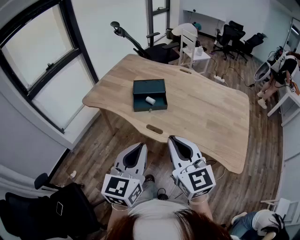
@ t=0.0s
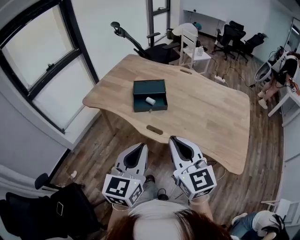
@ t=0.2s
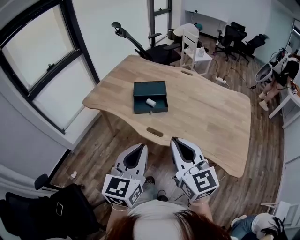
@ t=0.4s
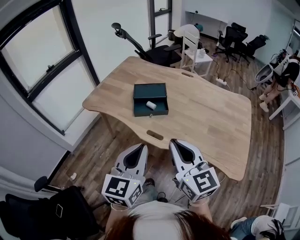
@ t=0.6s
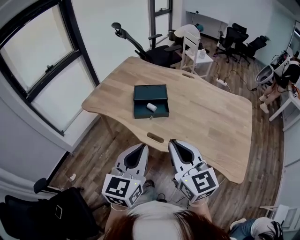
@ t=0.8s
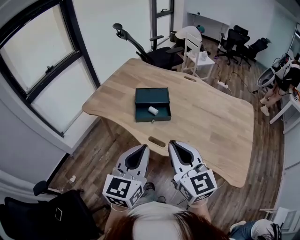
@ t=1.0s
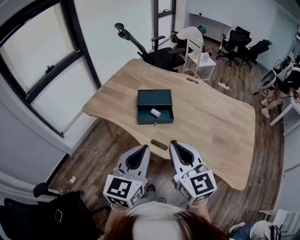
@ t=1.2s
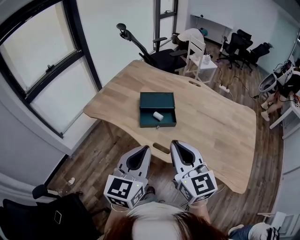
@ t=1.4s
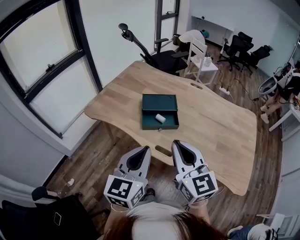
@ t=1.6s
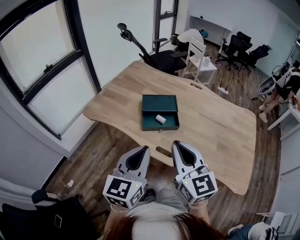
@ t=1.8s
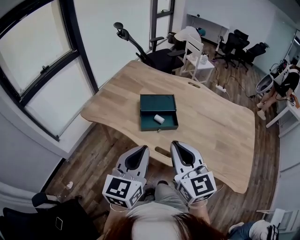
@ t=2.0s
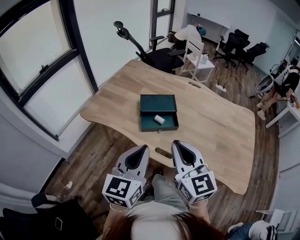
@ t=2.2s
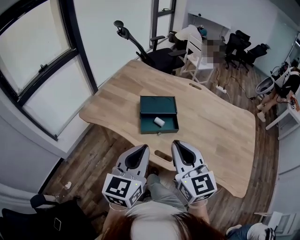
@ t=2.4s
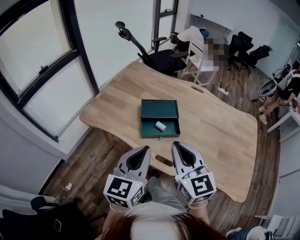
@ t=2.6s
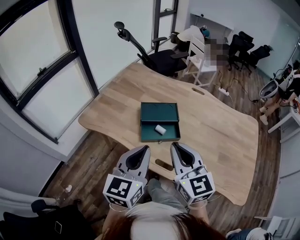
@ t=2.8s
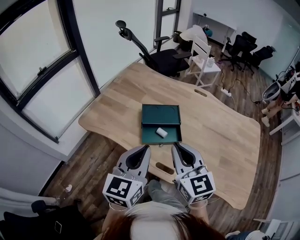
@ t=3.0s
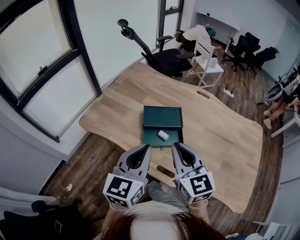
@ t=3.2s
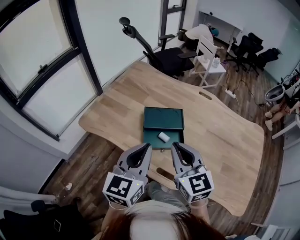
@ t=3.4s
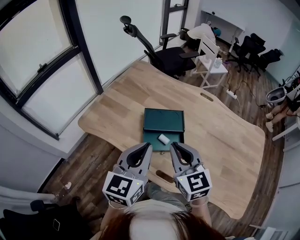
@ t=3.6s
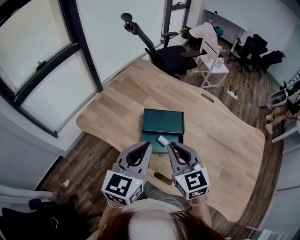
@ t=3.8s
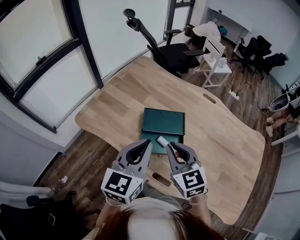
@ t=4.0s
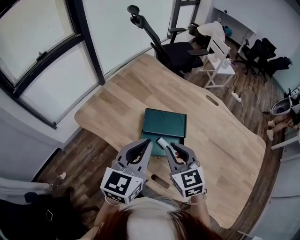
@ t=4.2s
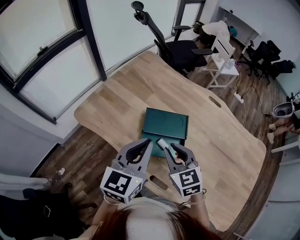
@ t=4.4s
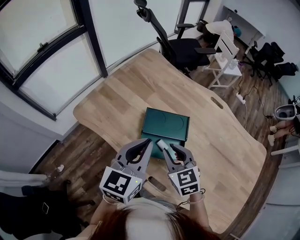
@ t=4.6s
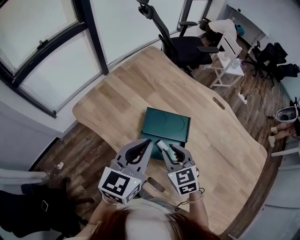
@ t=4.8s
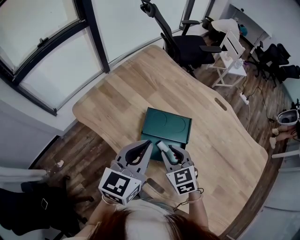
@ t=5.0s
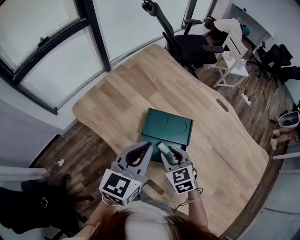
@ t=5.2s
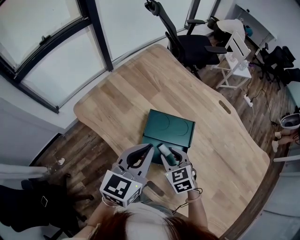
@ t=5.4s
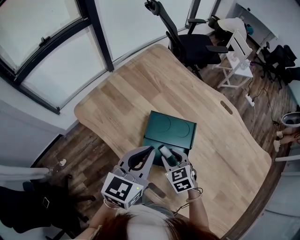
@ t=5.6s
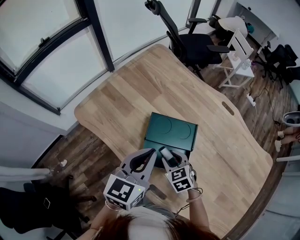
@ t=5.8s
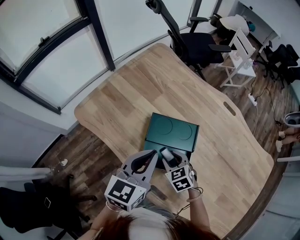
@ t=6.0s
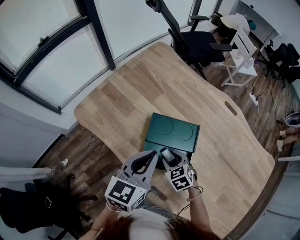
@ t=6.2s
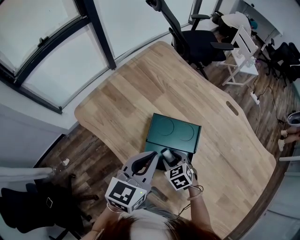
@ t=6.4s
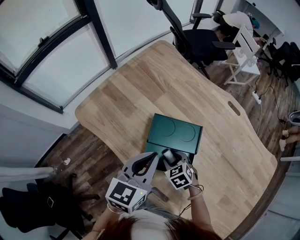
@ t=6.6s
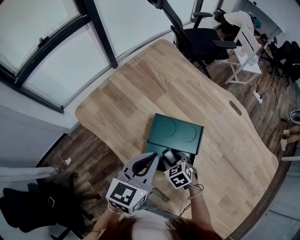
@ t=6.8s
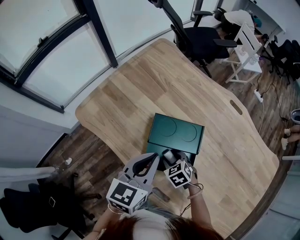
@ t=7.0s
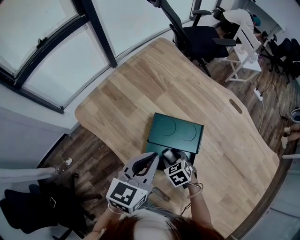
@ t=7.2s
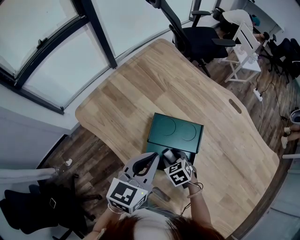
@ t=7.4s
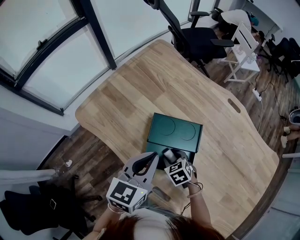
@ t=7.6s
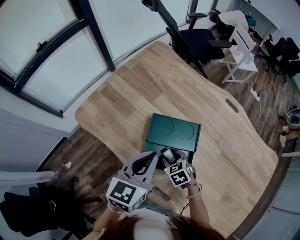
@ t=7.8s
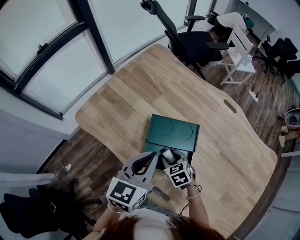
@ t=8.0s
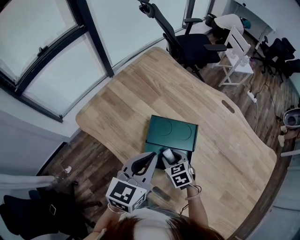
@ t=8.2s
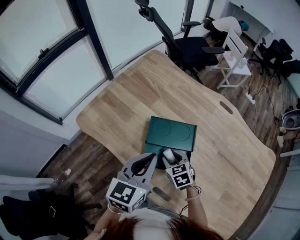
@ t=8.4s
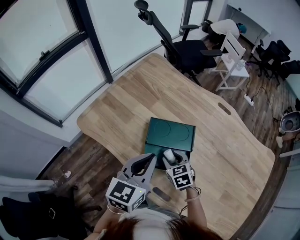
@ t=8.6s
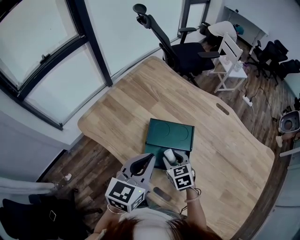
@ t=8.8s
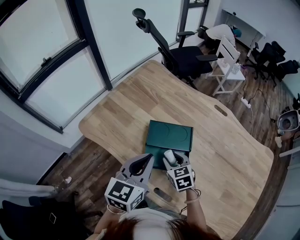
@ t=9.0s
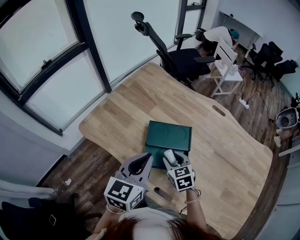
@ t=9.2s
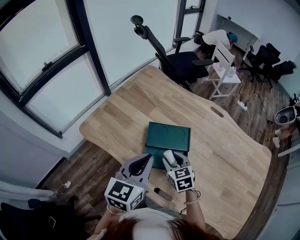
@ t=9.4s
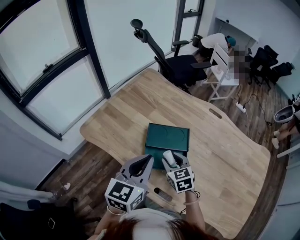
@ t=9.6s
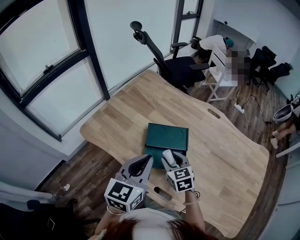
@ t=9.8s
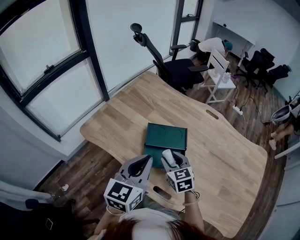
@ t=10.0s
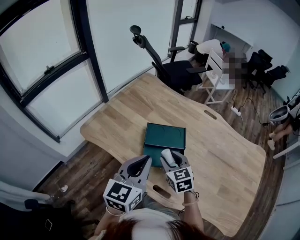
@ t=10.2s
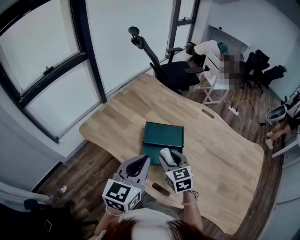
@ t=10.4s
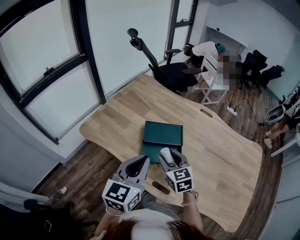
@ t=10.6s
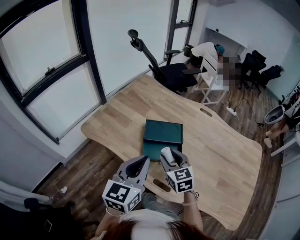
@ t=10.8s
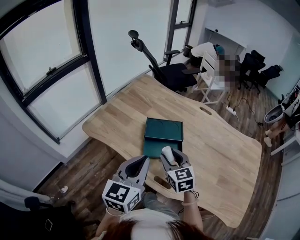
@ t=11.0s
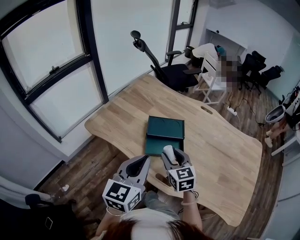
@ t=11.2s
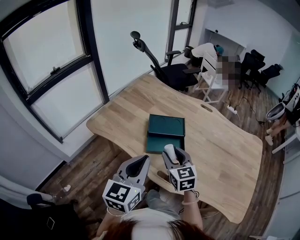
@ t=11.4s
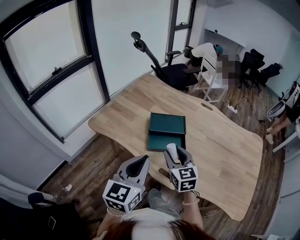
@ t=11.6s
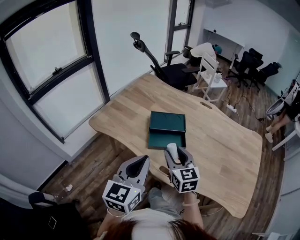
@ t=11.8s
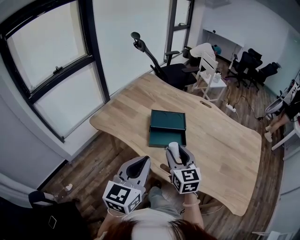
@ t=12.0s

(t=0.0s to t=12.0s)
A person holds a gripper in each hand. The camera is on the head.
t=0.0s - t=1.6s: Both grippers travel together forward and to the left, roughly 15 cm.
t=1.6s - t=3.0s: The grippers both shift forward by about 15 cm.
t=3.0s - t=4.4s: The left gripper moves forward, about 15 cm; the right gripper travels forward and downward by roughly 20 cm, and rotates approximately 20 degrees.
t=4.4s - t=6.0s: The left gripper is displaced downward and forward by roughly 10 cm. Meanwhile the right gripper shifts some 20 cm downward, swivels approximately 30 degrees, and opens its fingers.
t=6.0s - t=7.6s: The right gripper changes place by some 5 cm.
t=7.6s - t=9.0s: The right gripper travels upward by approximately 10 cm, and changes its angle by roughly 20 degrees. The left gripper heads upward, covering roughly 5 cm.
t=9.0s - t=10.4s: The right gripper travels upward and backward by roughly 10 cm, while the left gripper moves backward, some 10 cm.
t=10.4s - t=12.0s: The right gripper heads backward and upward, covering roughly 15 cm. The left gripper shifts approximately 15 cm backward.

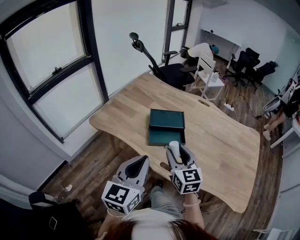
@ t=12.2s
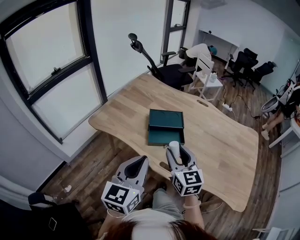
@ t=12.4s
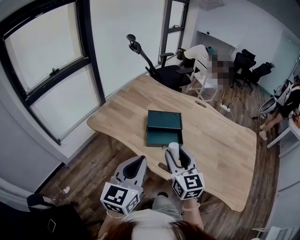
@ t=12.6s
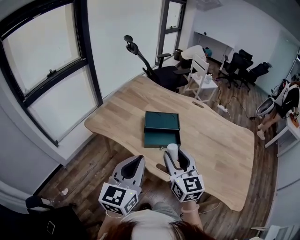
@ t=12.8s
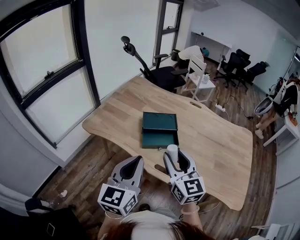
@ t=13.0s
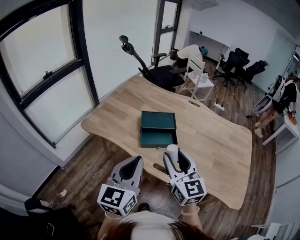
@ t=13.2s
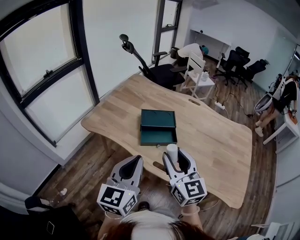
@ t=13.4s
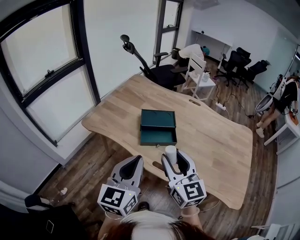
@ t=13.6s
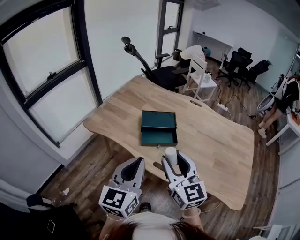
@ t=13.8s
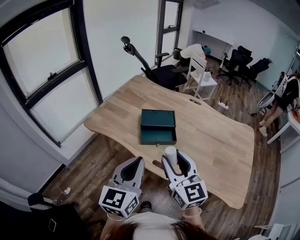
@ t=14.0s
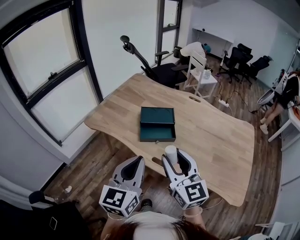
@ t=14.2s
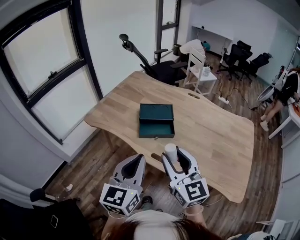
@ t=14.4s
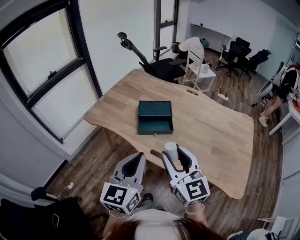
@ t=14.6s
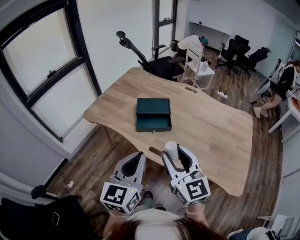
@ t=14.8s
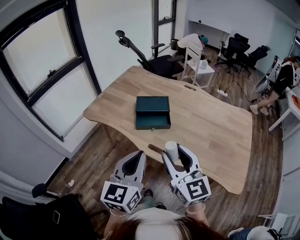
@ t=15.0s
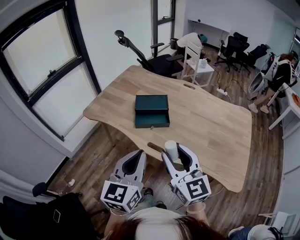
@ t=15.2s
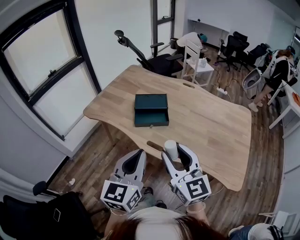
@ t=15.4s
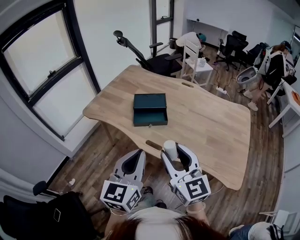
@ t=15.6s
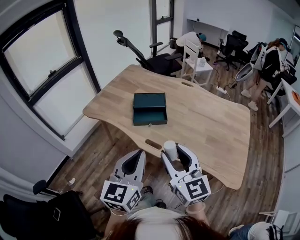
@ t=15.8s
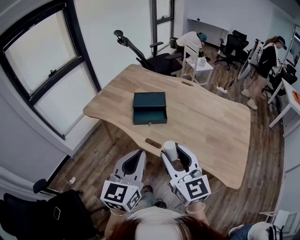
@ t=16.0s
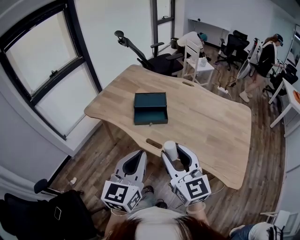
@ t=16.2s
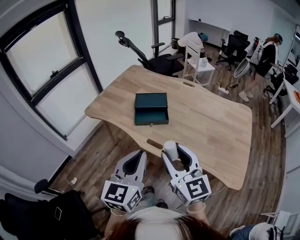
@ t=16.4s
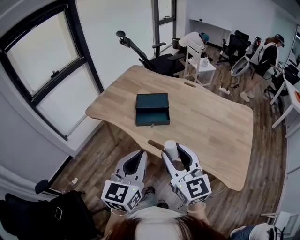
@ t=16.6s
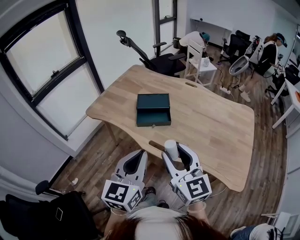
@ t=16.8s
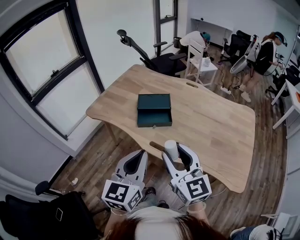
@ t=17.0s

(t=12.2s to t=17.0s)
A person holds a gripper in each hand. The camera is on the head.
t=12.2s - t=13.8s: The right gripper moves backward and upward, roughly 10 cm.
t=13.8s - t=15.4s: Both grippers travel together backward and to the right, about 10 cm.
t=15.4s - t=17.0s: The grippers make only small movements.

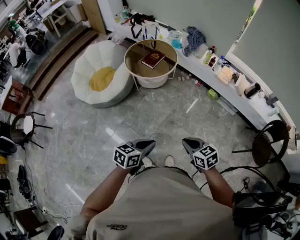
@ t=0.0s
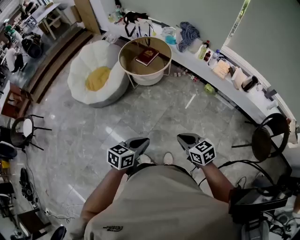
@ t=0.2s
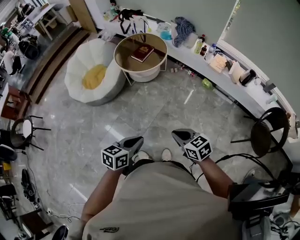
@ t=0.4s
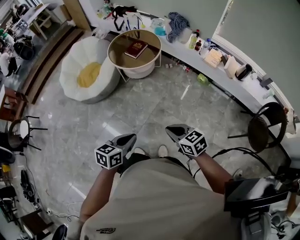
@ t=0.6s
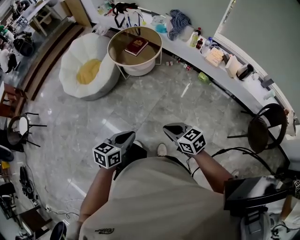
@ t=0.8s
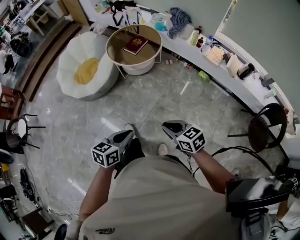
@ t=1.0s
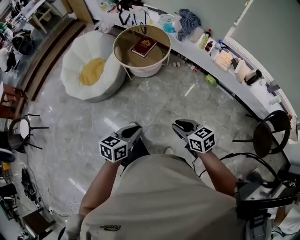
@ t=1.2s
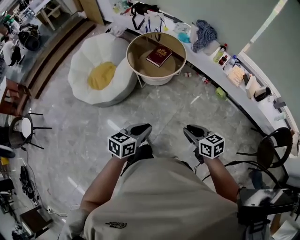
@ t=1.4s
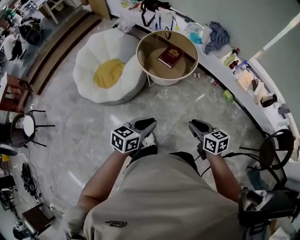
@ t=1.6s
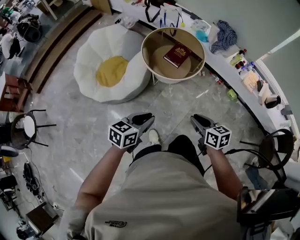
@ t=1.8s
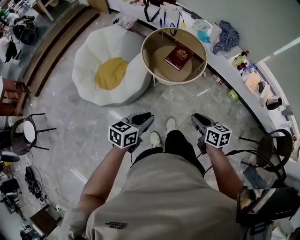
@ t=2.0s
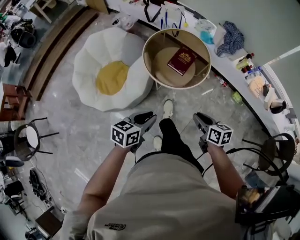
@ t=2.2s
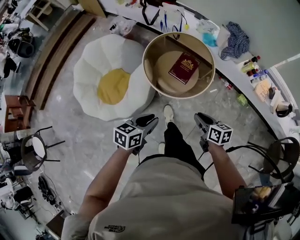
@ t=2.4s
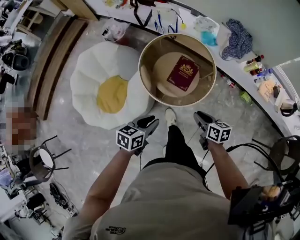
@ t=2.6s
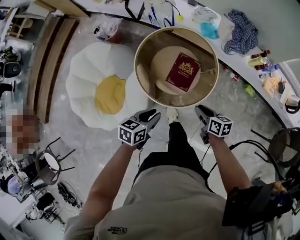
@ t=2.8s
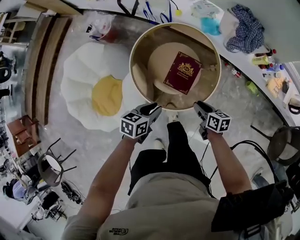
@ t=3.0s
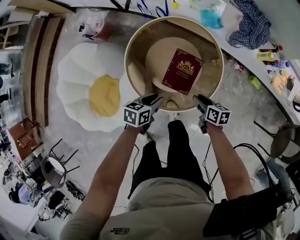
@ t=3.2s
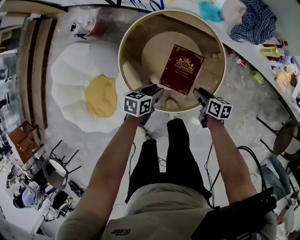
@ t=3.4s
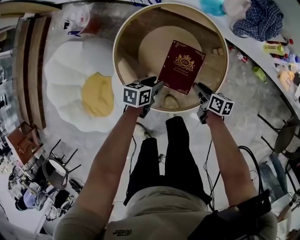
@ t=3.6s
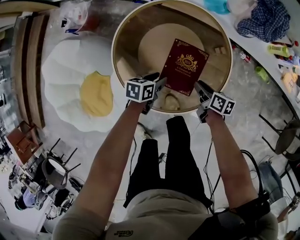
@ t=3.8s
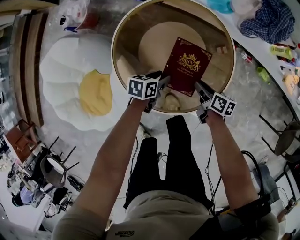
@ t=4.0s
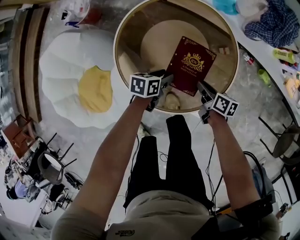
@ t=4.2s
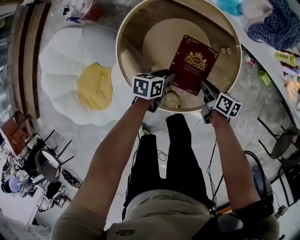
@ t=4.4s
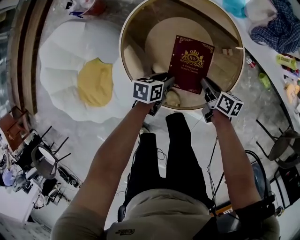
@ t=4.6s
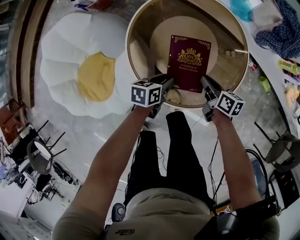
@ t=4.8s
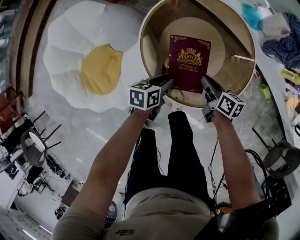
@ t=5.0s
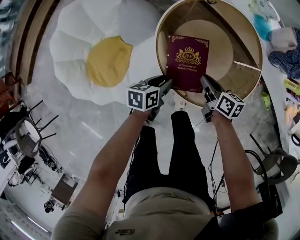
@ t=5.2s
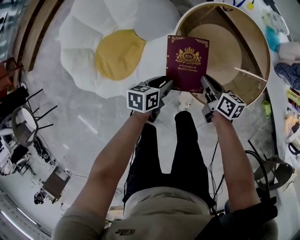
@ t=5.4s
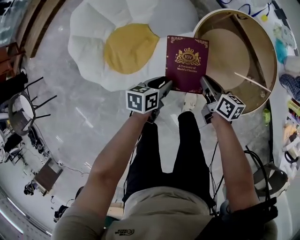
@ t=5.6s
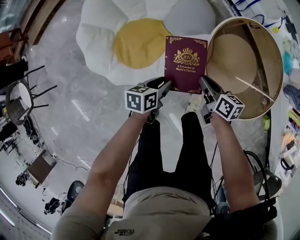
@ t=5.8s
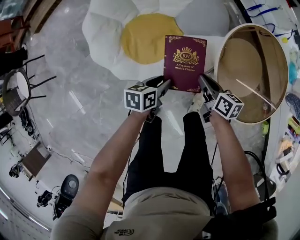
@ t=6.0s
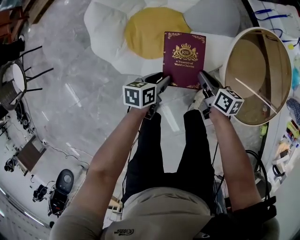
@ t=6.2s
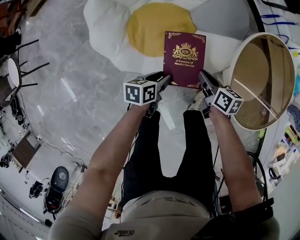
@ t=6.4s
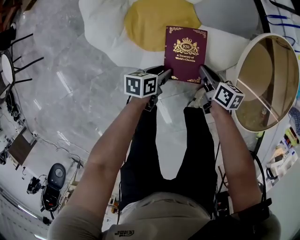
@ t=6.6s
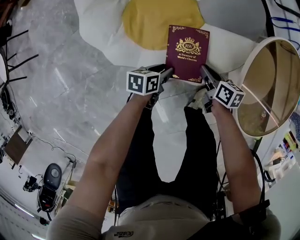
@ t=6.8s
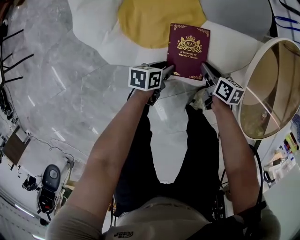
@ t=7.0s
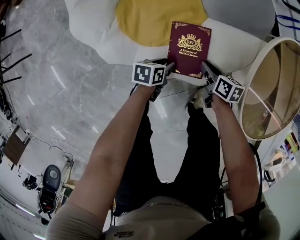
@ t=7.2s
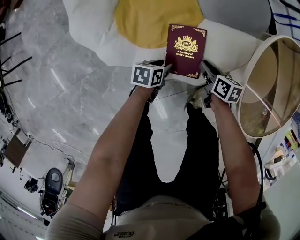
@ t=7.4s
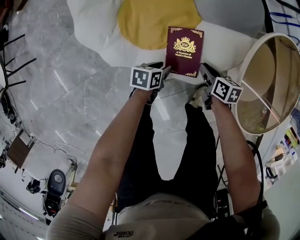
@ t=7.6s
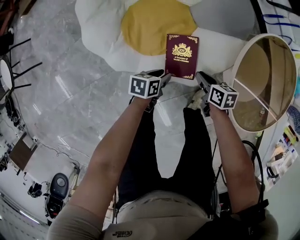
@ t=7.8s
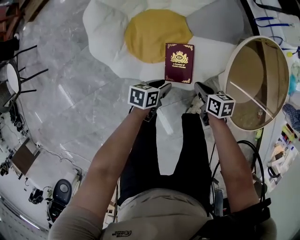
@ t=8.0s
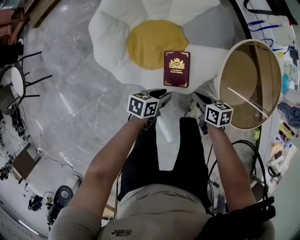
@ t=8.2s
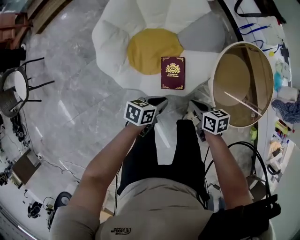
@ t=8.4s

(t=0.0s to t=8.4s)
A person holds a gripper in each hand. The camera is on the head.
t=0.0s - t=1.4s: Both grippers travel together forward, approximately 20 cm.
t=1.4s - t=2.8s: The pair of grippers is taken forward, roughly 60 cm. The right gripper changes its angle by about 30 degrees.
t=2.8s - t=4.2s: The grippers both shift downward and forward by approximately 30 cm. The right gripper swivels approximately 20 degrees; the left gripper opens.
t=4.2s - t=5.6s: The right gripper ends up some 30 cm from where it was, and turns by roughly 30 degrees, while the left gripper shifts by about 30 cm, and swivels some 30 degrees.
t=5.6s - t=7.0s: The two grippers go roughly 30 cm downward and to the left. The right gripper changes its angle by some 20 degrees.
t=7.0s - t=8.4s: The two grippers go some 25 cm upward. The left gripper closes its fingers.
